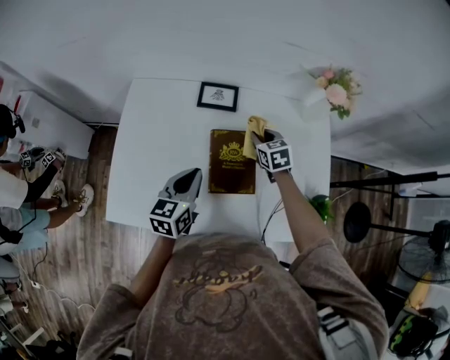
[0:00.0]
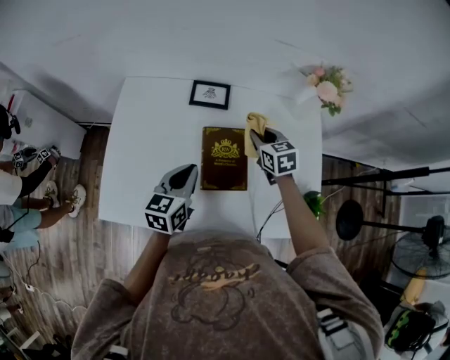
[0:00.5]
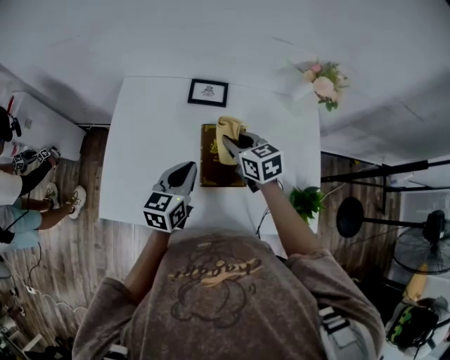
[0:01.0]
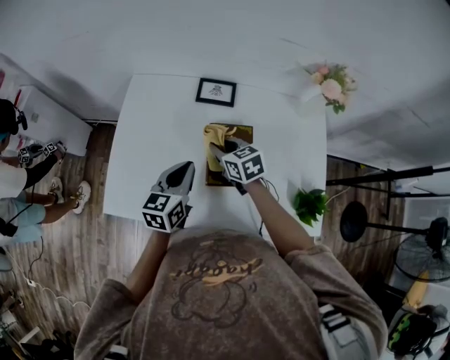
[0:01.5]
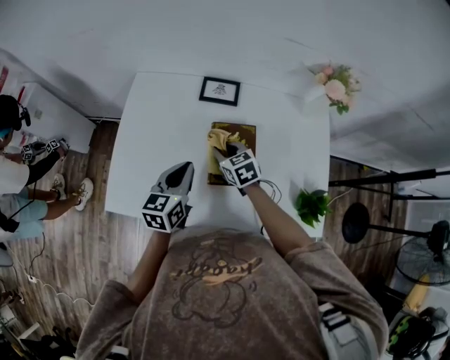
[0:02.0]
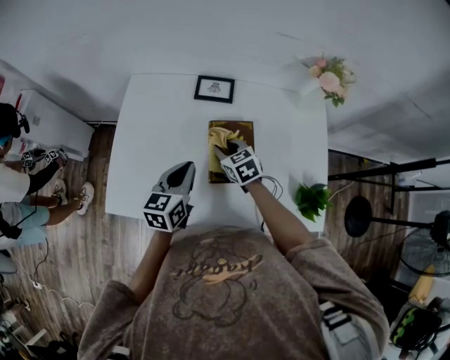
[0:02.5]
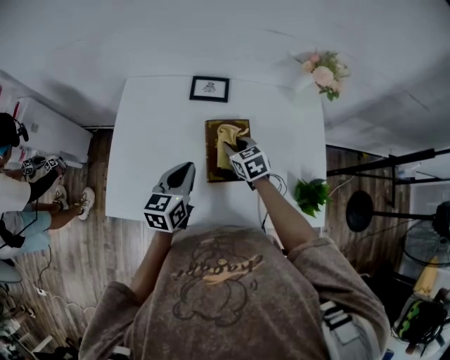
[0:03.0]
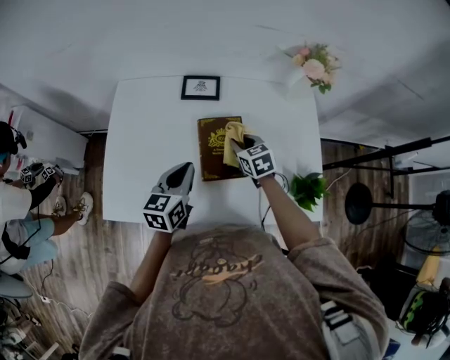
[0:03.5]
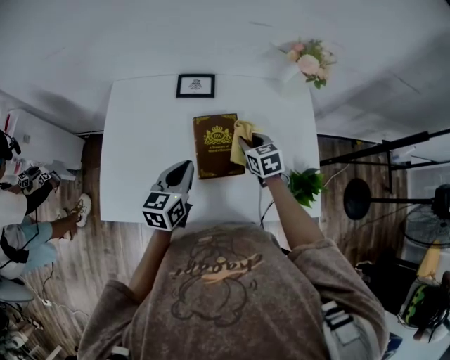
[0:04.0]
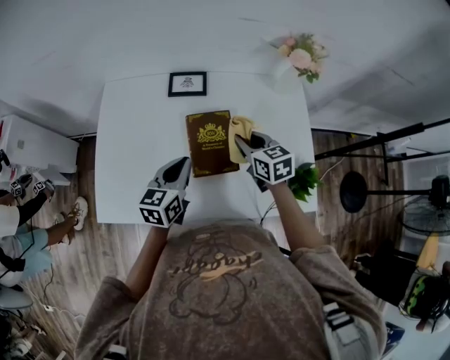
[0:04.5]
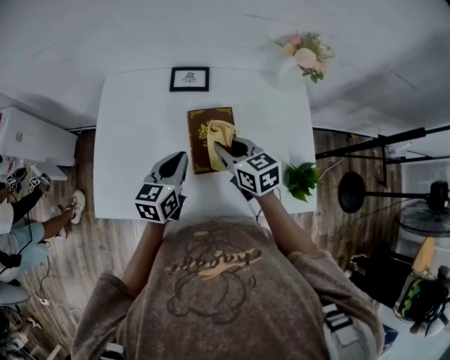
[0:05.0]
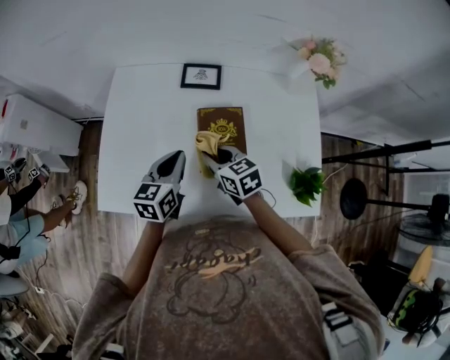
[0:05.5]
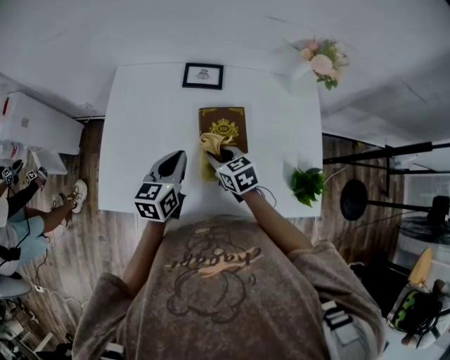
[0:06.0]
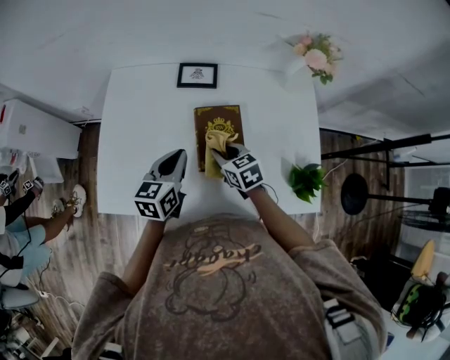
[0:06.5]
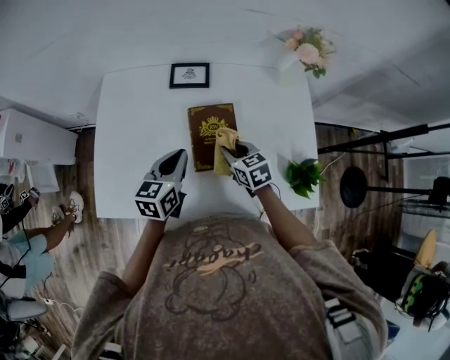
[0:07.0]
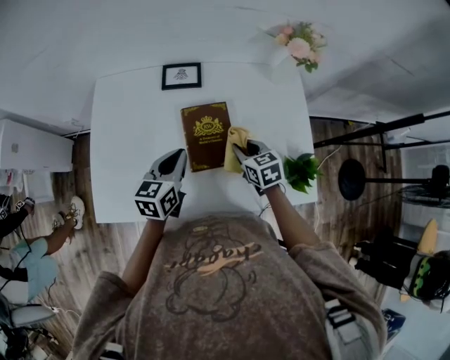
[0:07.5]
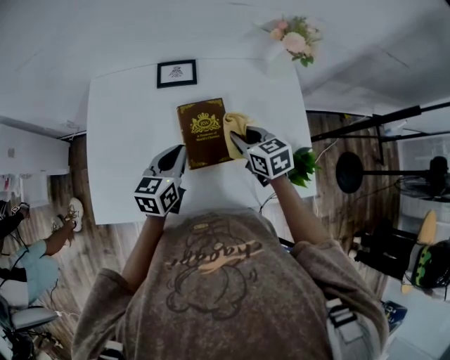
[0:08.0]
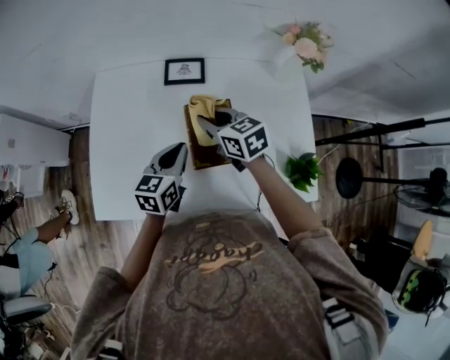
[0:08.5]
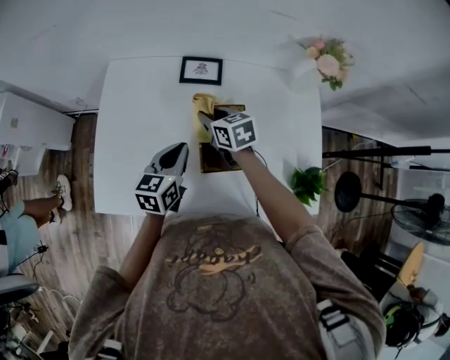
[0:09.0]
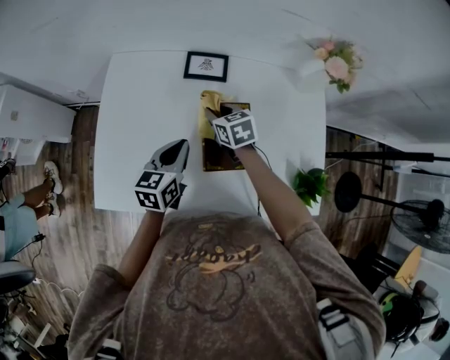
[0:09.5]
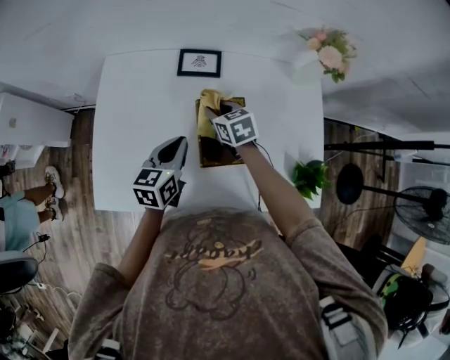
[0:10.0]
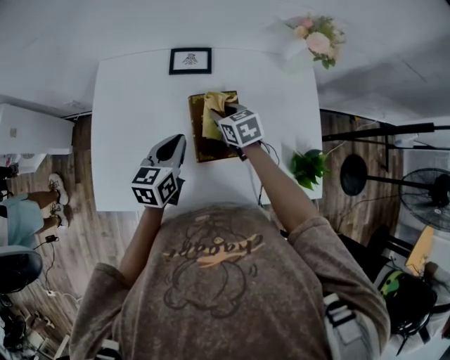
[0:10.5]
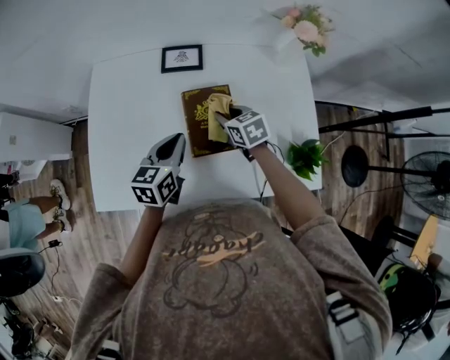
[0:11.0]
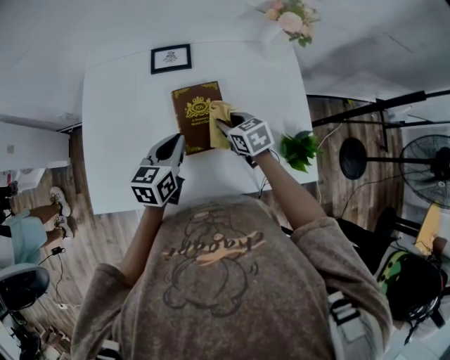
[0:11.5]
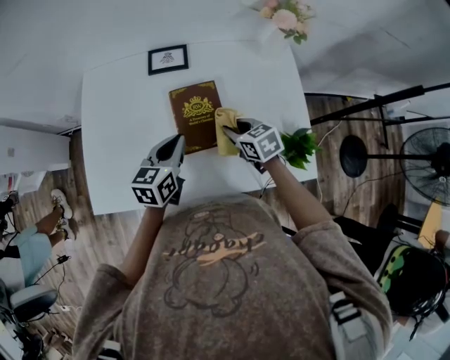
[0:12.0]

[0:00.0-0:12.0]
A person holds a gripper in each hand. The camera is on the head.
0:00.0 to 0:02.0: The right gripper moves to the left and backward, some 15 cm.
0:02.0 to 0:04.0: The right gripper travels to the right by some 15 cm. Meanwhile the left gripper heads to the right, covering some 5 cm.
0:04.0 to 0:06.0: The right gripper is displaced to the left and backward by roughly 15 cm.
0:06.0 to 0:08.0: The right gripper shifts about 15 cm to the right and upward, while the left gripper travels to the right by roughly 5 cm.
0:08.0 to 0:10.0: The right gripper goes about 15 cm to the left, forward and downward. Meanwhile the left gripper ends up roughly 5 cm from where it was.
0:10.0 to 0:12.0: The right gripper shifts about 20 cm backward and to the right, while the left gripper is displaced to the right by about 5 cm.

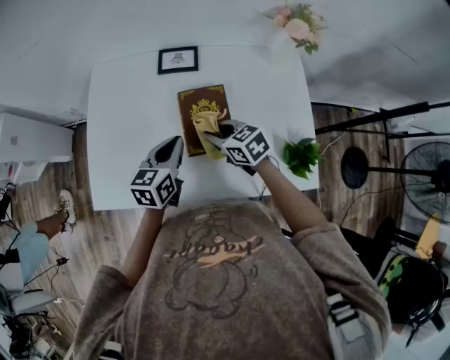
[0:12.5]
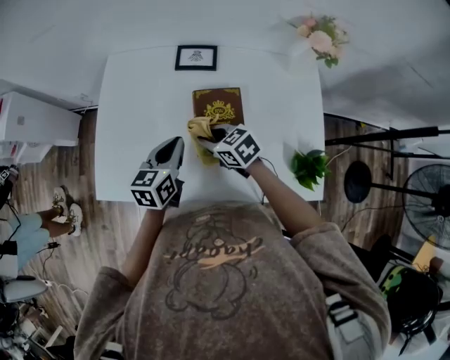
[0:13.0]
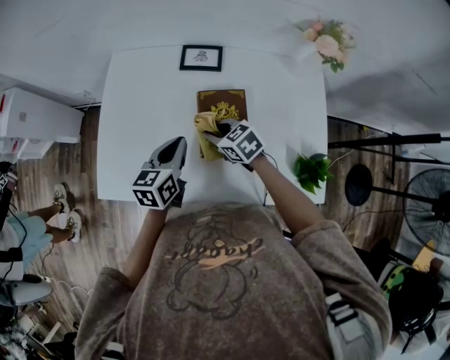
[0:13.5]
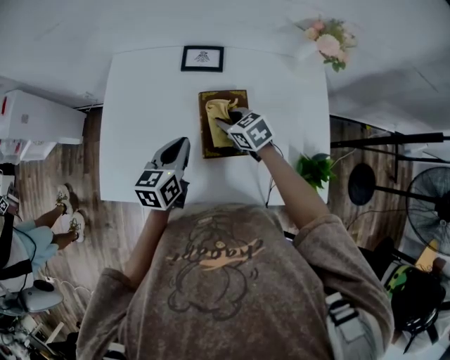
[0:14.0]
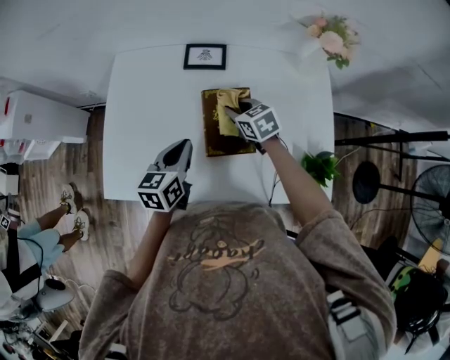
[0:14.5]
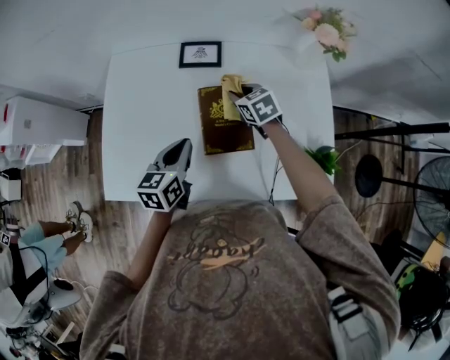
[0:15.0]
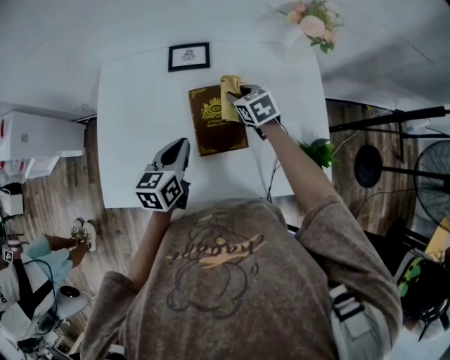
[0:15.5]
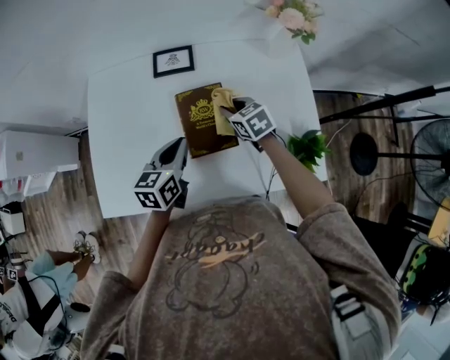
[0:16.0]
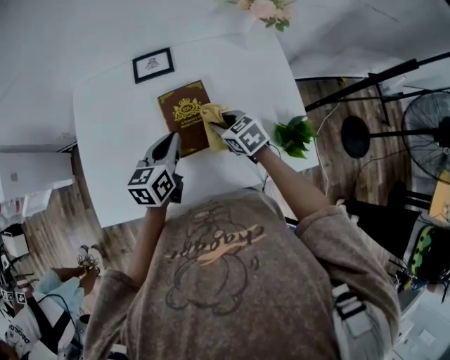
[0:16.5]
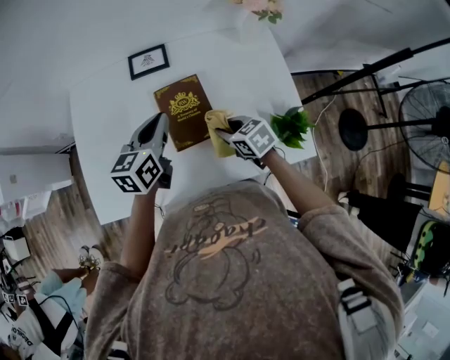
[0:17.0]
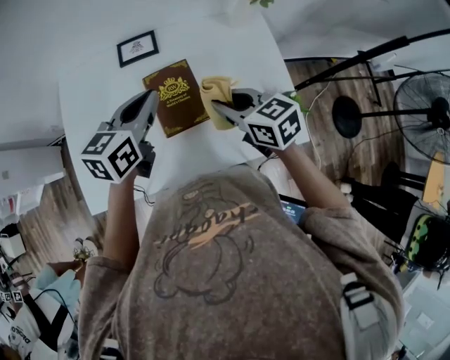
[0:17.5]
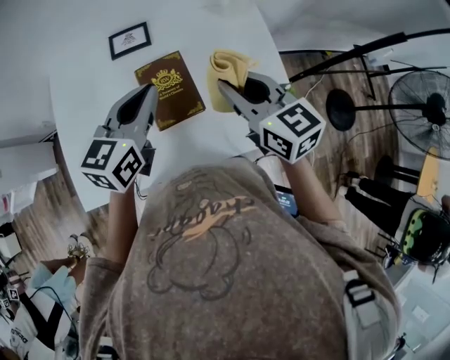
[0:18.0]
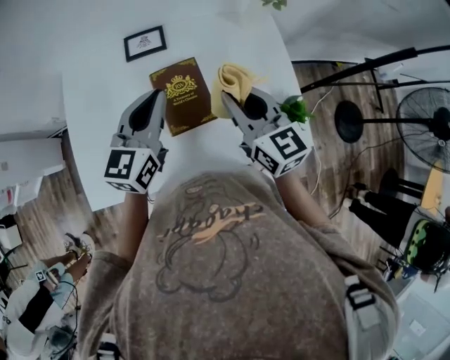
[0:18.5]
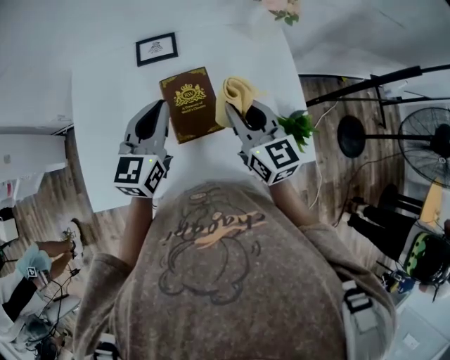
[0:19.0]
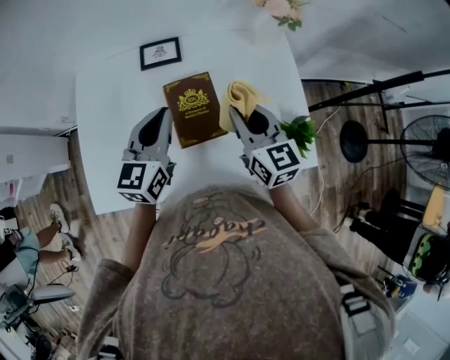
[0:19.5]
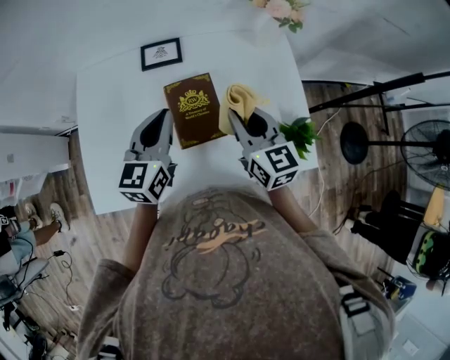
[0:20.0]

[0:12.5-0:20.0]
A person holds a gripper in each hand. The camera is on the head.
0:12.5 to 0:14.5: The right gripper is displaced forward by about 10 cm.
0:14.5 to 0:16.5: The left gripper is displaced to the right by some 10 cm. The right gripper is displaced backward and to the right by roughly 10 cm.
0:16.5 to 0:18.0: The right gripper shifts roughly 25 cm upward, and turns by approximately 30 degrees. The left gripper shifts about 15 cm upward.
0:18.0 to 0:20.0: The left gripper ends up approximately 5 cm from where it was. Meanwhile the right gripper travels downward by about 5 cm.

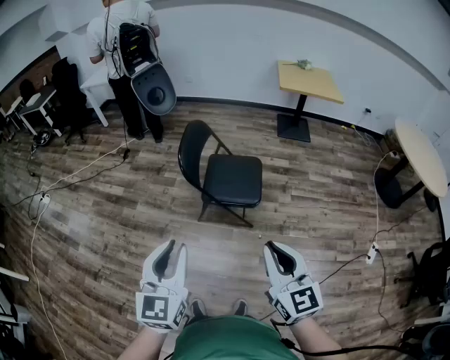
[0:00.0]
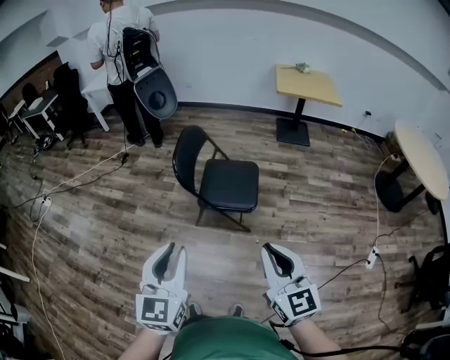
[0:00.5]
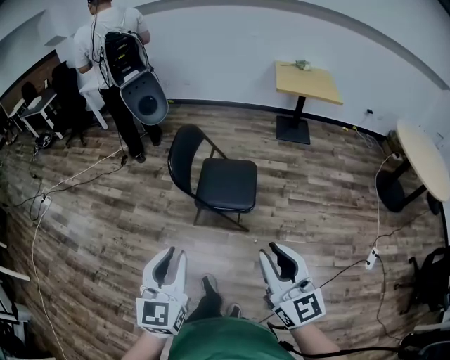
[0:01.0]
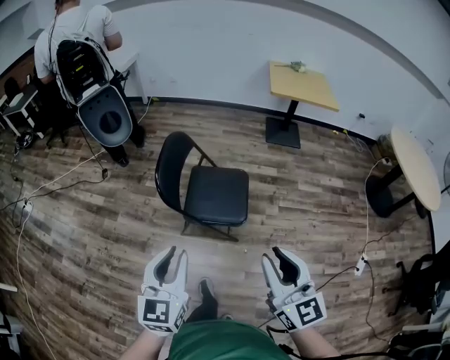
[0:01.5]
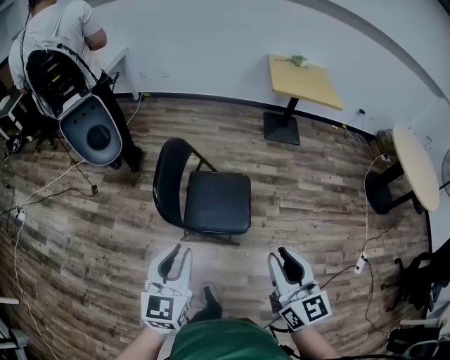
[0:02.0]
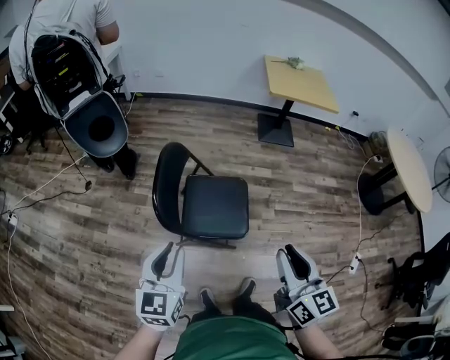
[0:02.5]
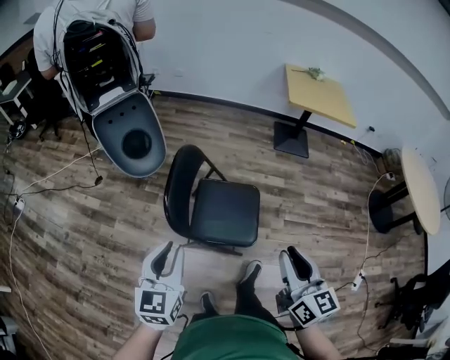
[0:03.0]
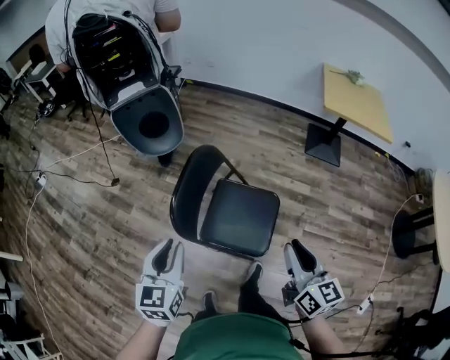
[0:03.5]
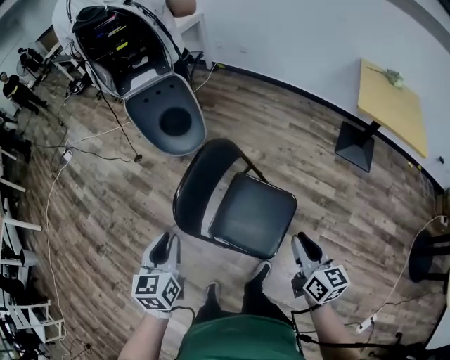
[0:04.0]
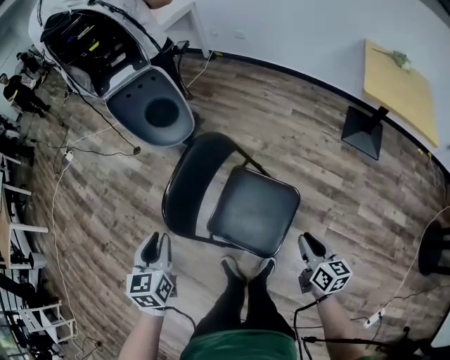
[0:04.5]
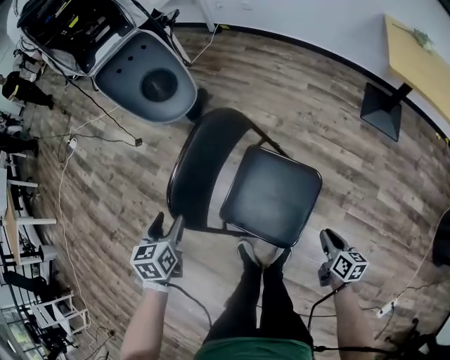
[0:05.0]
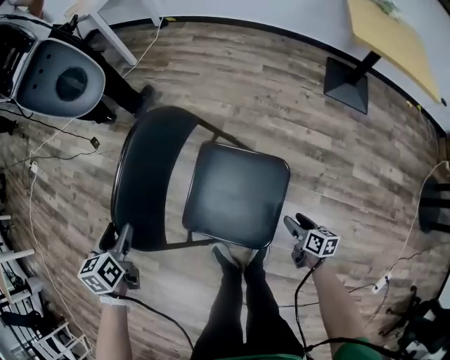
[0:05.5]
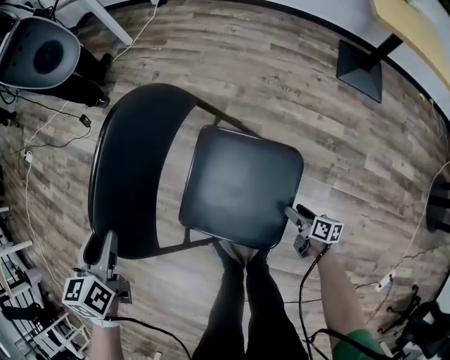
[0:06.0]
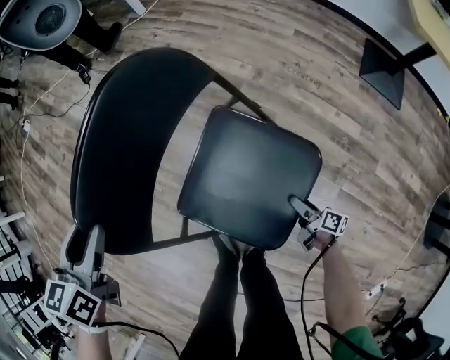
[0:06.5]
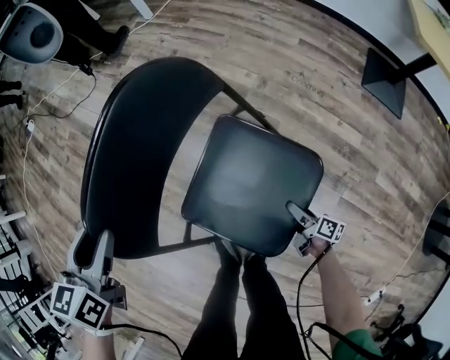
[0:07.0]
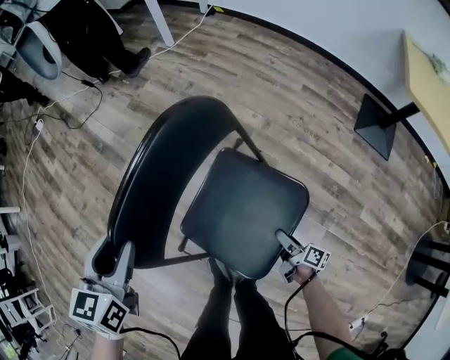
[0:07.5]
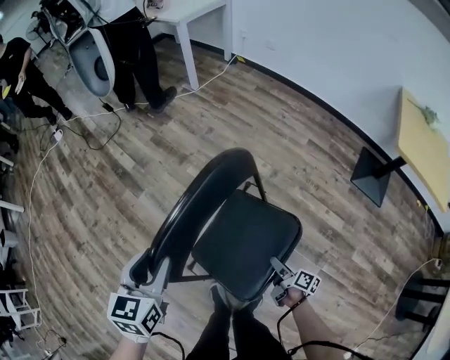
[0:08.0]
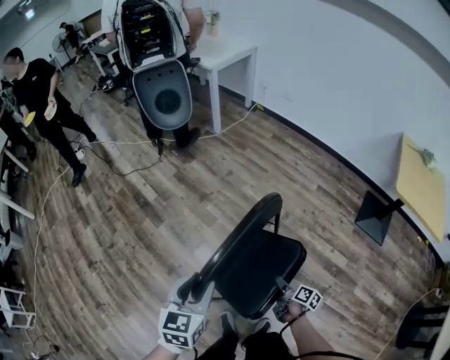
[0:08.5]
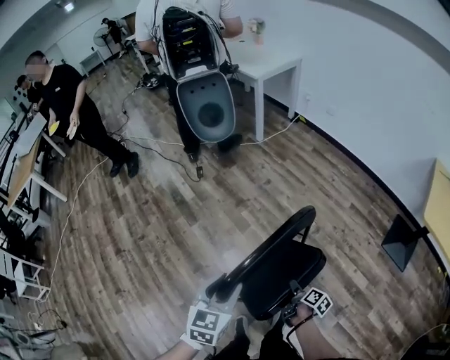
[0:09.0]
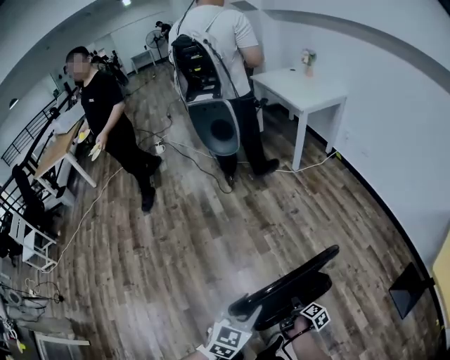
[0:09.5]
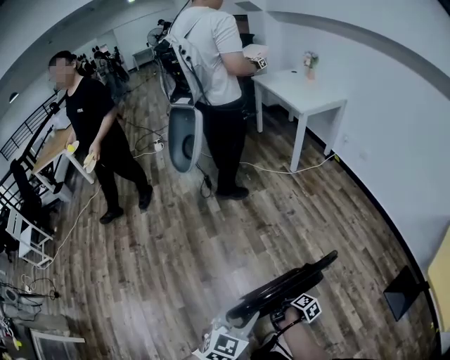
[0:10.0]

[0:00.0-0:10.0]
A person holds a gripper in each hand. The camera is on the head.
0:00.0 to 0:02.0: Both grippers travel together forward, roughly 25 cm.
0:02.0 to 0:04.0: The right gripper changes place by about 35 cm, and turns by approximately 30 degrees, while the left gripper changes place by roughly 20 cm, and rotates approximately 40 degrees.
0:04.0 to 0:06.0: The right gripper is displaced downward by roughly 50 cm, swivels about 40 degrees, and opens, while the left gripper heads downward and forward, covering roughly 25 cm, and opens.
0:06.0 to 0:08.0: The right gripper shifts roughly 20 cm upward, forward and to the left; the left gripper shifts roughly 10 cm upward.
0:08.0 to 0:10.0: The left gripper shifts about 10 cm upward and backward. Meanwhile the right gripper is displaced to the left, forward and upward by some 25 cm, and closes.
